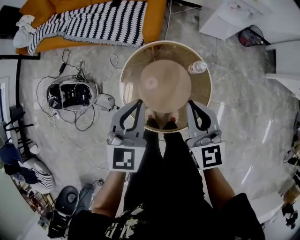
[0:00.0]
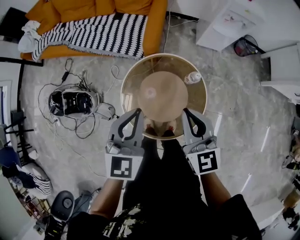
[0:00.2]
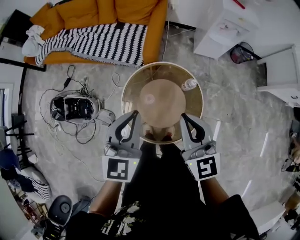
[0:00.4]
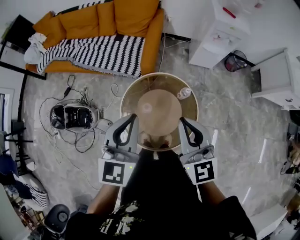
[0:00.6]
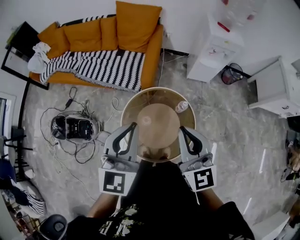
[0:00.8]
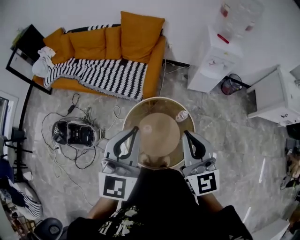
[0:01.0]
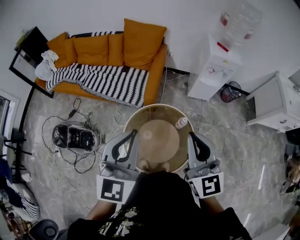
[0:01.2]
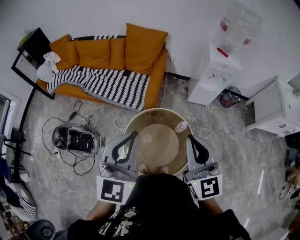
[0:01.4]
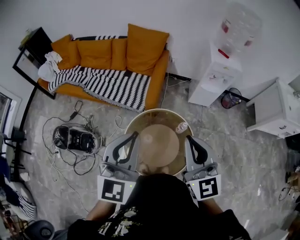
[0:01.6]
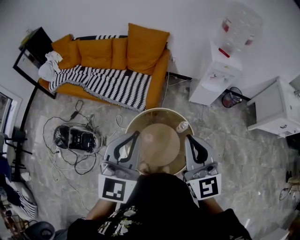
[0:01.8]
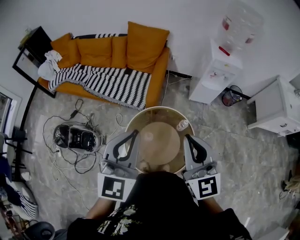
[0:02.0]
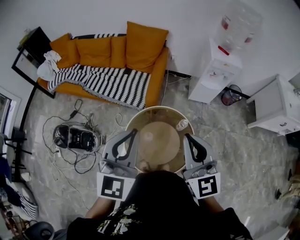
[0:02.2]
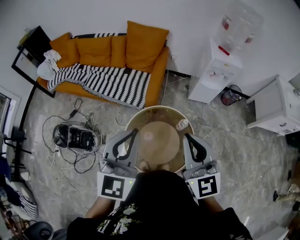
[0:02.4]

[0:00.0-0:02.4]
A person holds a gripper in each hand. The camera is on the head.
0:00.0 to 0:01.2: Both grippers move upward, about 30 cm. The left gripper swivels approximately 20 degrees. Meanwhile the right gripper swivels some 20 degrees.
0:01.2 to 0:02.4: The grippers move only a little.

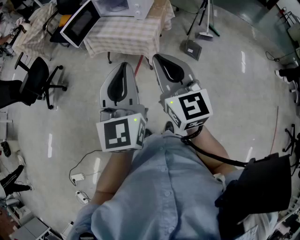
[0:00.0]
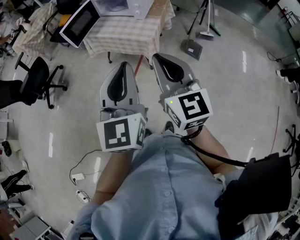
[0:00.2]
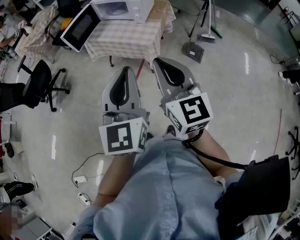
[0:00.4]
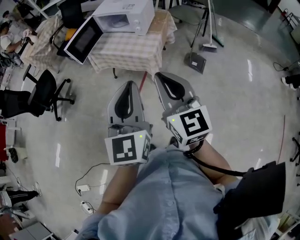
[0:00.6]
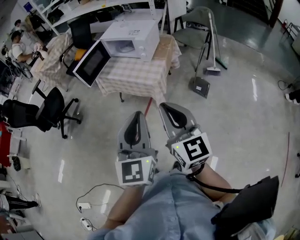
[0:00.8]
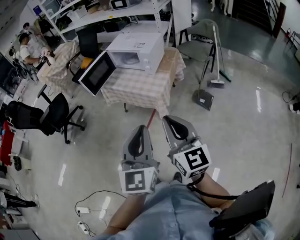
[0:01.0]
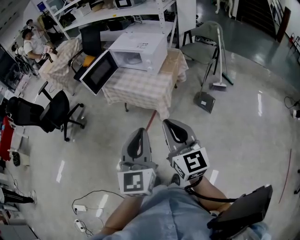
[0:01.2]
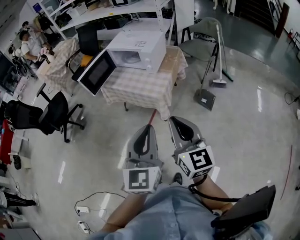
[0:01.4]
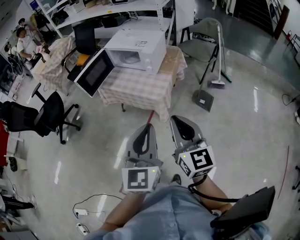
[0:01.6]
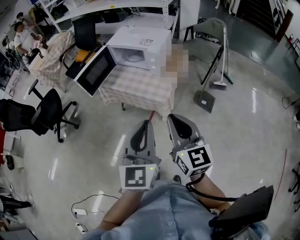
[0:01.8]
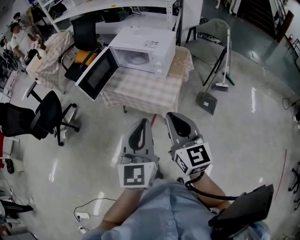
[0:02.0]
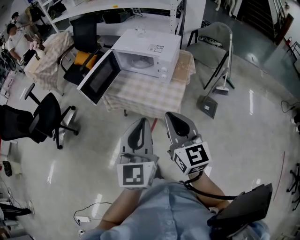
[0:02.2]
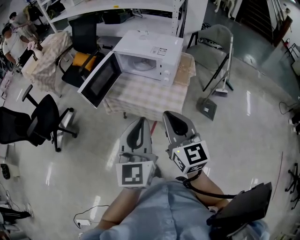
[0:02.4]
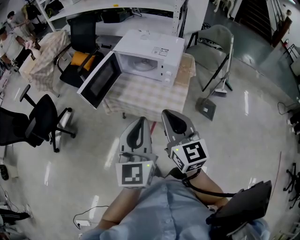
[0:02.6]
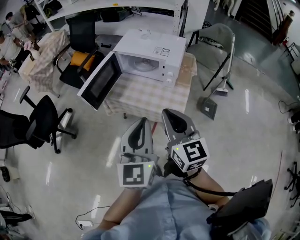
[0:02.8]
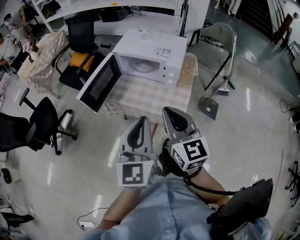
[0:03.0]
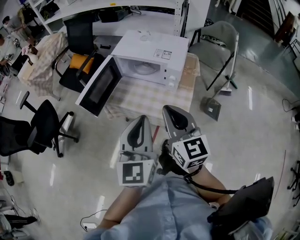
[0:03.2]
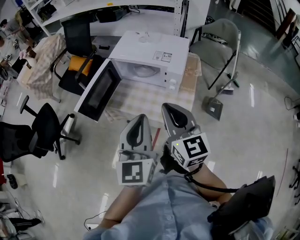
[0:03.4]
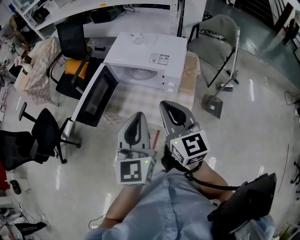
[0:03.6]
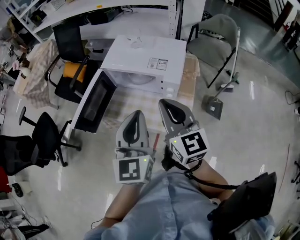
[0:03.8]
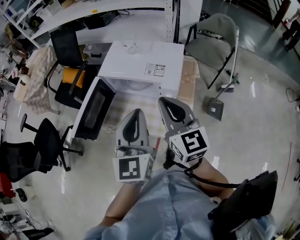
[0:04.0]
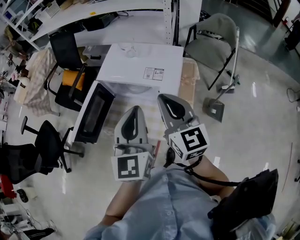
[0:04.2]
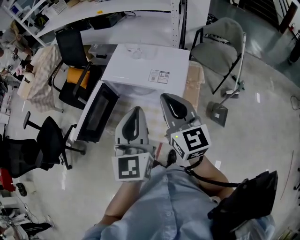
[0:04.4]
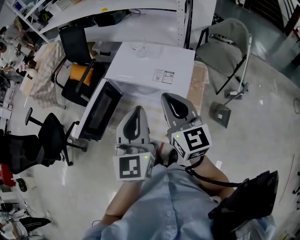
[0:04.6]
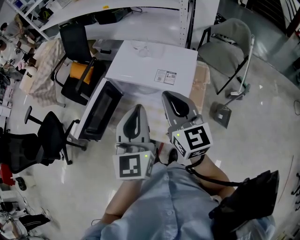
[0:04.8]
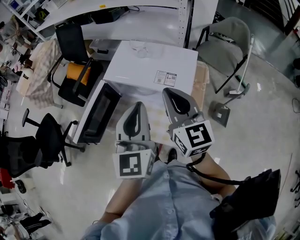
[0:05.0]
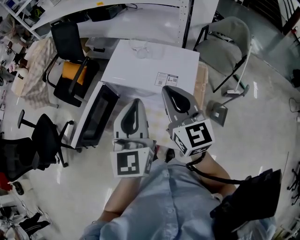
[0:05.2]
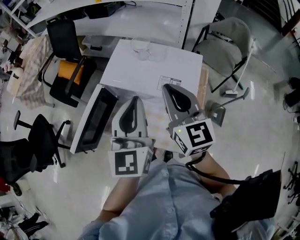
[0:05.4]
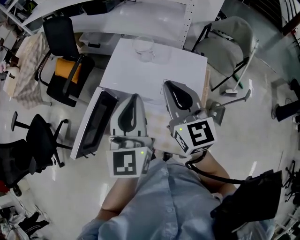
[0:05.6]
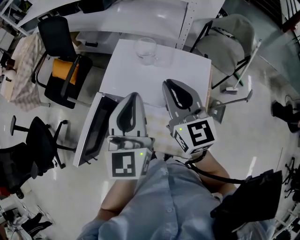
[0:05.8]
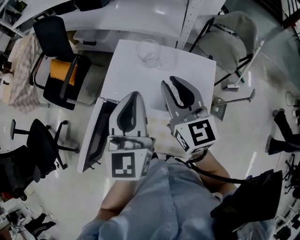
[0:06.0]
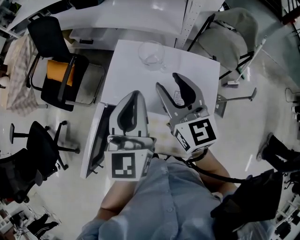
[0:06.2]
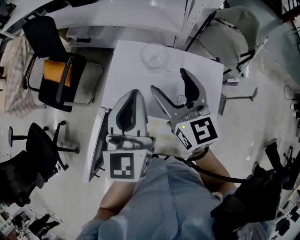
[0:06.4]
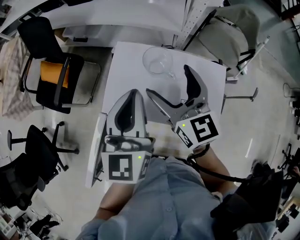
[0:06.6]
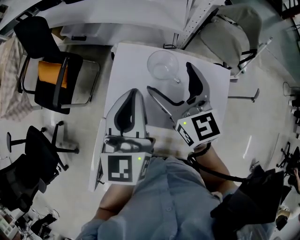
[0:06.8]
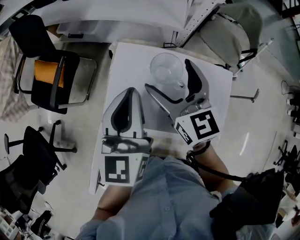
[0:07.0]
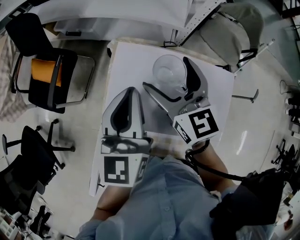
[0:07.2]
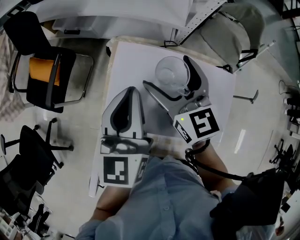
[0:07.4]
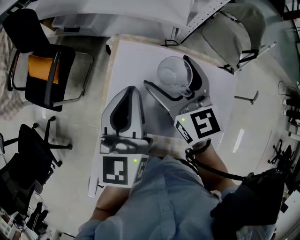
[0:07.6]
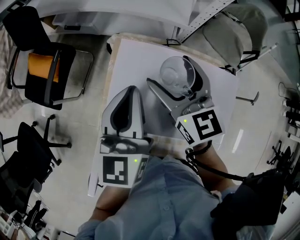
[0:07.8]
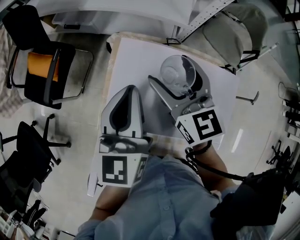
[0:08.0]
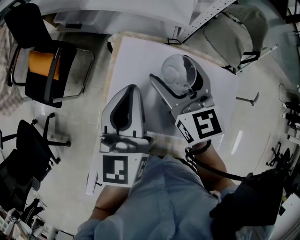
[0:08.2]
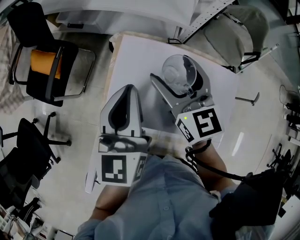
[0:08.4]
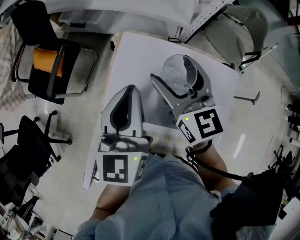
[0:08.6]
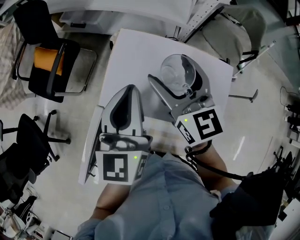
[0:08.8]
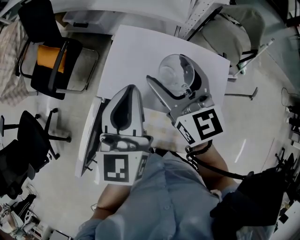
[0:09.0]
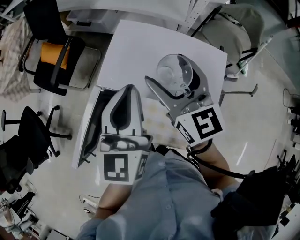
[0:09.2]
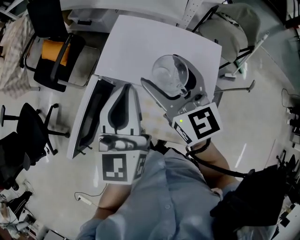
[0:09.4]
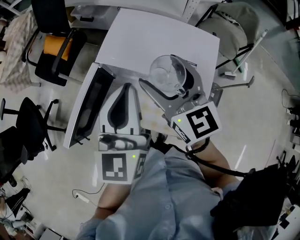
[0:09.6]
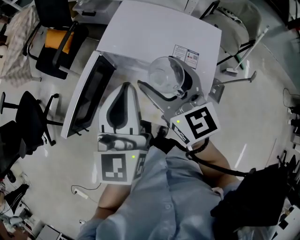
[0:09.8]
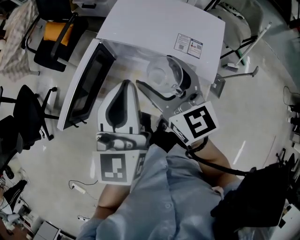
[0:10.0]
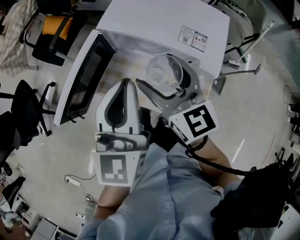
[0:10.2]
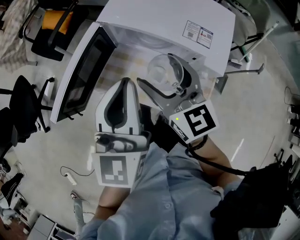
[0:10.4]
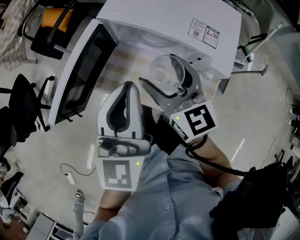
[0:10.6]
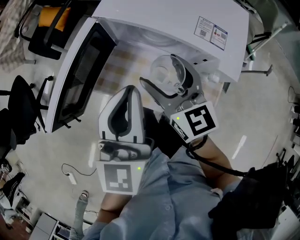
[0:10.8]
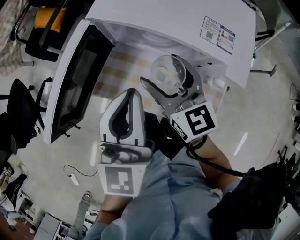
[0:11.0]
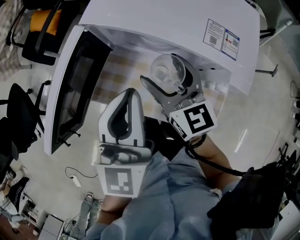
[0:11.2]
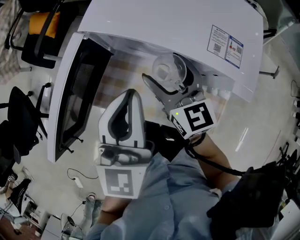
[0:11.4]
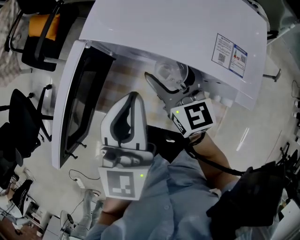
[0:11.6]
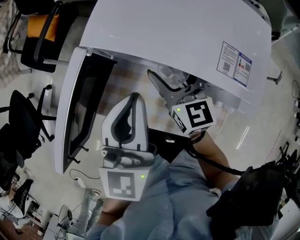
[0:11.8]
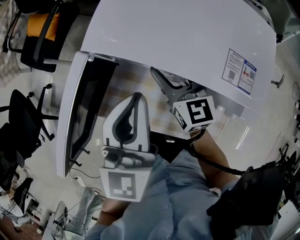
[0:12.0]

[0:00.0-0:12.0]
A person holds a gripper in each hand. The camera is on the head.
0:00.0 to 0:01.6: The two grippers go approximately 10 cm forward and to the right.
0:01.6 to 0:03.0: Both grippers move forward and to the left, about 30 cm.
0:03.0 to 0:04.4: The grippers both shift forward by about 25 cm.
0:04.4 to 0:06.0: Both grippers travel together forward, approximately 20 cm.
0:06.0 to 0:07.6: Both grippers travel together forward and downward, roughly 15 cm. The right gripper opens up.
0:07.6 to 0:09.0: The two grippers go some 10 cm backward.
0:09.0 to 0:10.4: Both grippers travel together backward, roughly 20 cm.
0:10.4 to 0:12.0: Both grippers move downward and forward, about 20 cm.

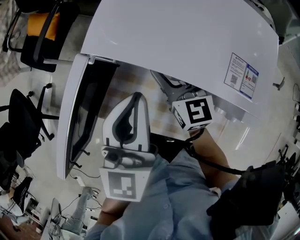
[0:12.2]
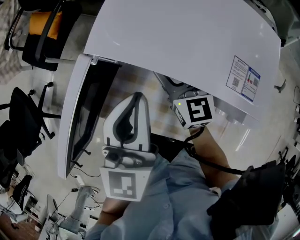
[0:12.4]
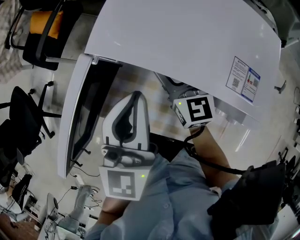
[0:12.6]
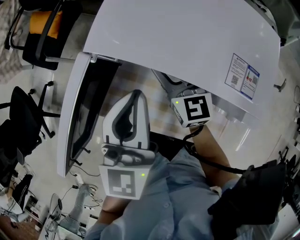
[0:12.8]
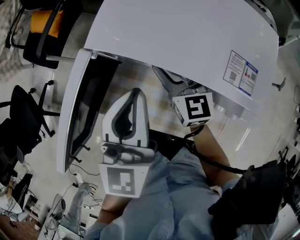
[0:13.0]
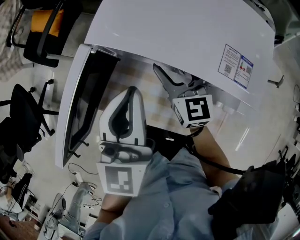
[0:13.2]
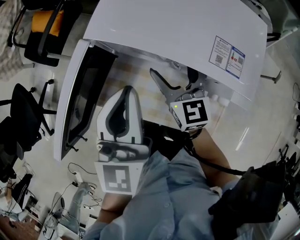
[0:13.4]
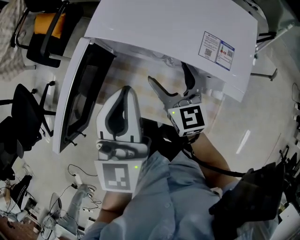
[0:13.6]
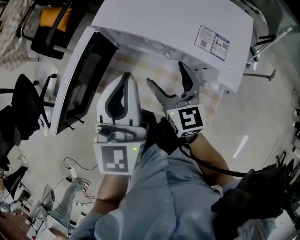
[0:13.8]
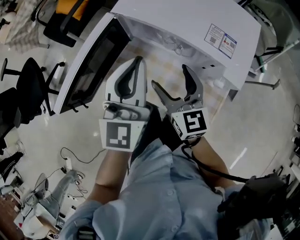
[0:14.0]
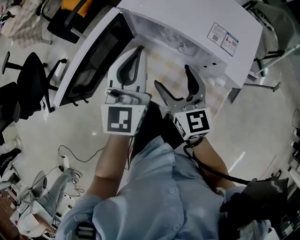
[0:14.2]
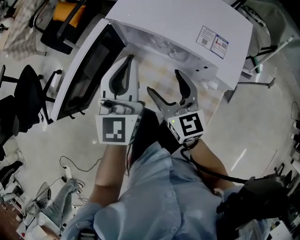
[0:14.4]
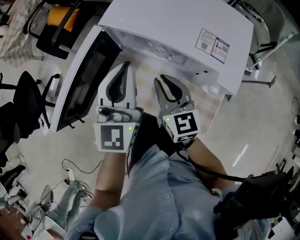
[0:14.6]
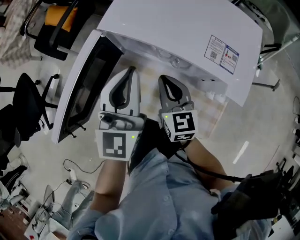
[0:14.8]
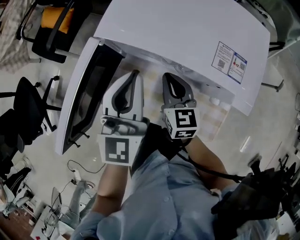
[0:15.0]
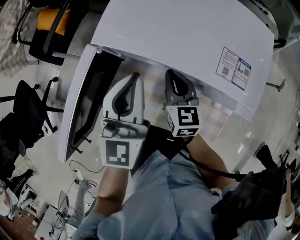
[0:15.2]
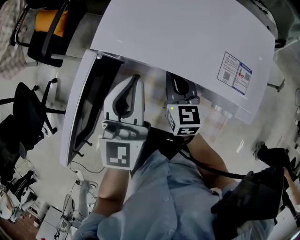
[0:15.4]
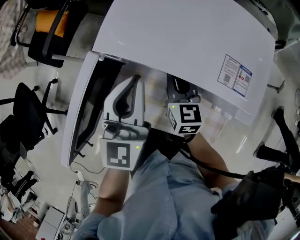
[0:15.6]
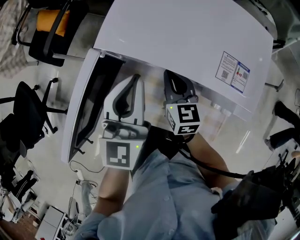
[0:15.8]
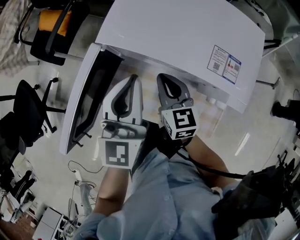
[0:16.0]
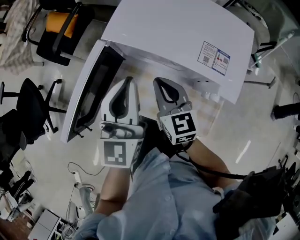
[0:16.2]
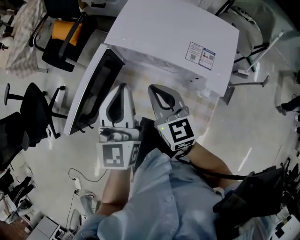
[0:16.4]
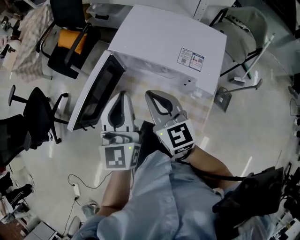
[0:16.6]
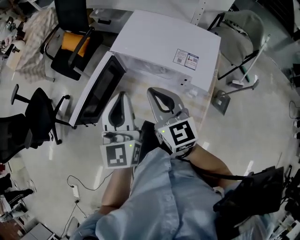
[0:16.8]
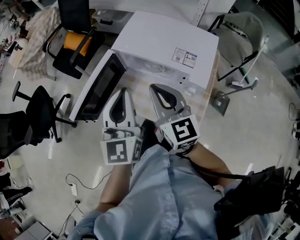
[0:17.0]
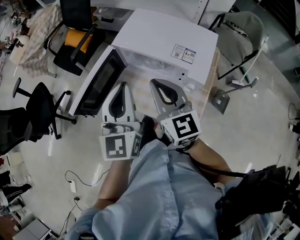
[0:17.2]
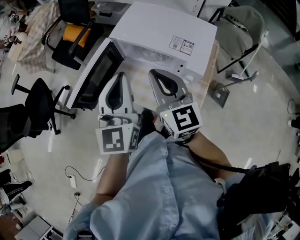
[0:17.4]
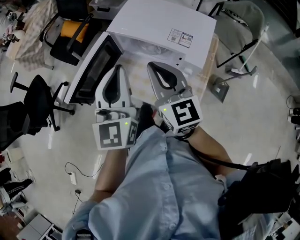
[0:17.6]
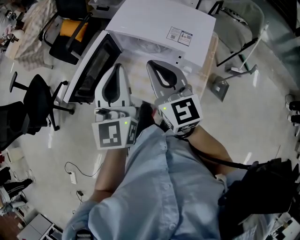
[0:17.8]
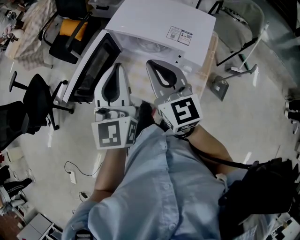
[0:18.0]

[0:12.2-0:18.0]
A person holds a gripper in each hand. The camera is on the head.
0:12.2 to 0:13.6: The right gripper moves backward, roughly 10 cm. The left gripper moves roughly 5 cm.
0:13.6 to 0:15.0: The right gripper goes some 5 cm downward, reaches some 10 cm backward, then returns, and closes, while the left gripper moves roughly 5 cm.
0:15.0 to 0:16.6: Both grippers travel together upward and backward, some 20 cm. The right gripper changes its angle by approximately 20 degrees.
0:16.6 to 0:18.0: The left gripper shifts roughly 5 cm backward. The right gripper goes some 5 cm upward.

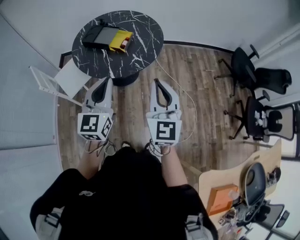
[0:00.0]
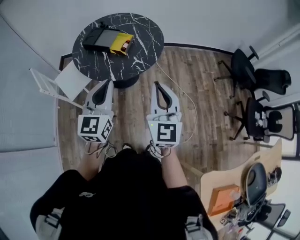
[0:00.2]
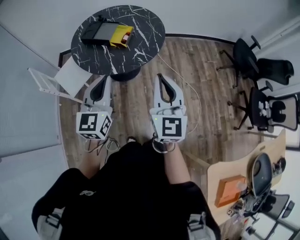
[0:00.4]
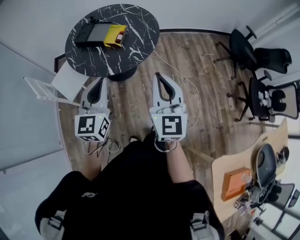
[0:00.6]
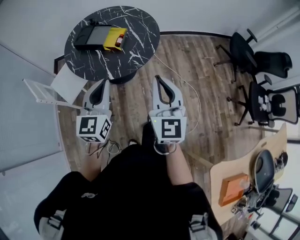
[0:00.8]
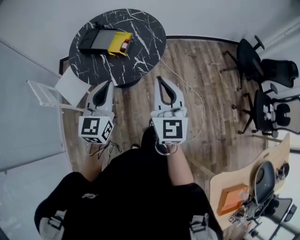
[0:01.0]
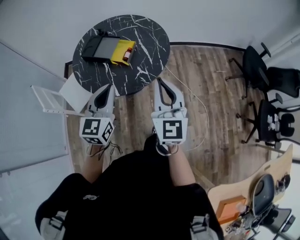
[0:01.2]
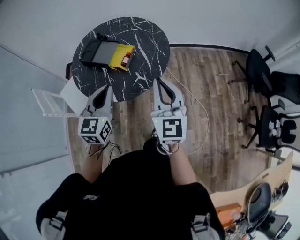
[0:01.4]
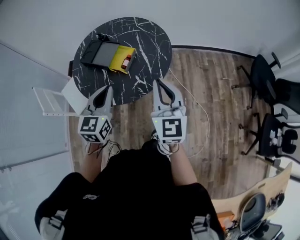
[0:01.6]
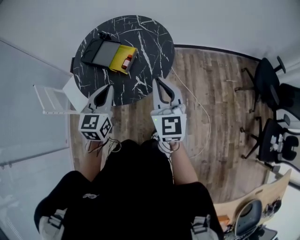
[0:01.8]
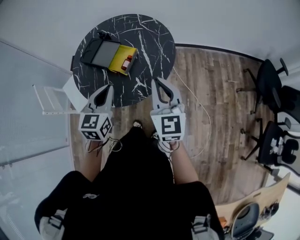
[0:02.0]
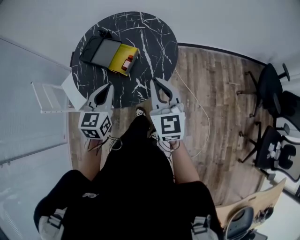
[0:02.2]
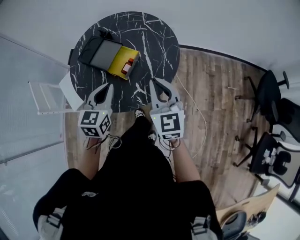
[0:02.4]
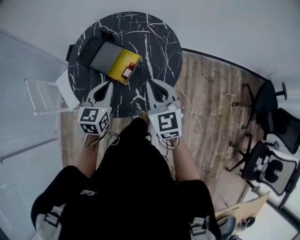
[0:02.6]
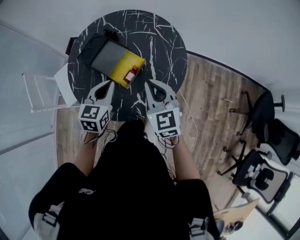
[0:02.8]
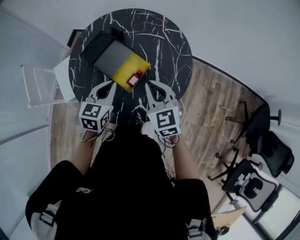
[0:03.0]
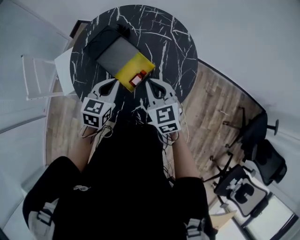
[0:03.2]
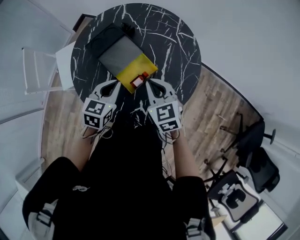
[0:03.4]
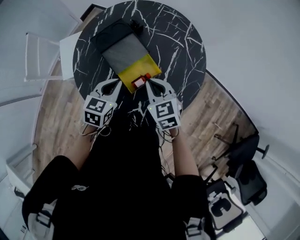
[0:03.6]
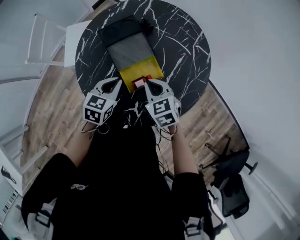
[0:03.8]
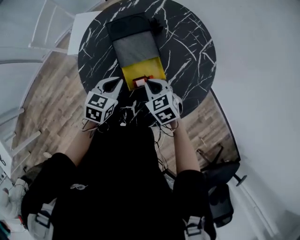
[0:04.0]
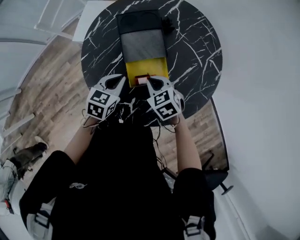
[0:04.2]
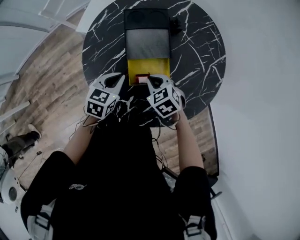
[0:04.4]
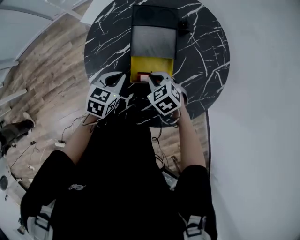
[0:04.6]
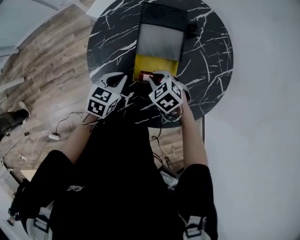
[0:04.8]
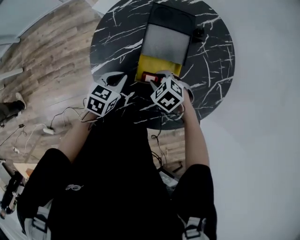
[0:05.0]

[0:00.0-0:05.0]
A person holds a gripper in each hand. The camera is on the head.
0:00.0 to 0:01.6: Both grippers travel together forward, some 25 cm.
0:01.6 to 0:03.4: The two grippers go approximately 30 cm forward and downward. The left gripper rotates roughly 30 degrees. Meanwhile the right gripper tilts its fingers approximately 30 degrees downward.
0:03.4 to 0:05.0: Both grippers travel together downward, some 15 cm. The left gripper swivels about 50 degrees; the right gripper angles its fingers downward, by some 40 degrees, and opens up.
